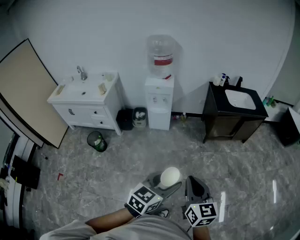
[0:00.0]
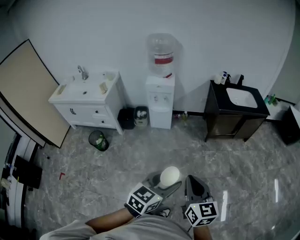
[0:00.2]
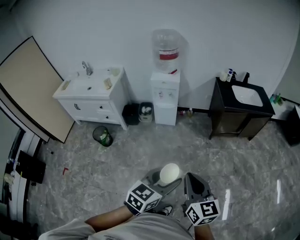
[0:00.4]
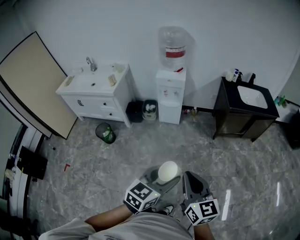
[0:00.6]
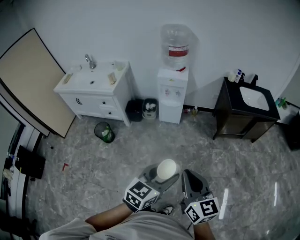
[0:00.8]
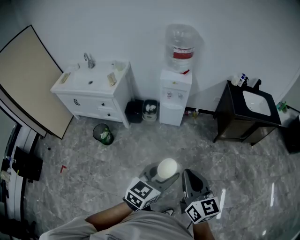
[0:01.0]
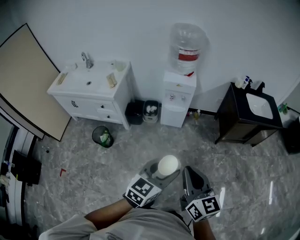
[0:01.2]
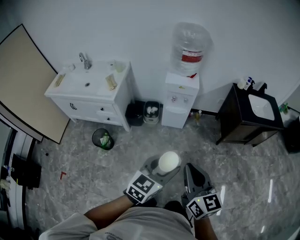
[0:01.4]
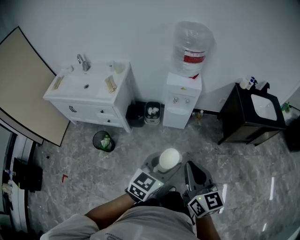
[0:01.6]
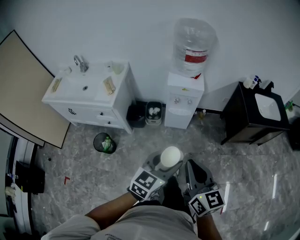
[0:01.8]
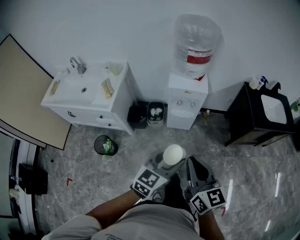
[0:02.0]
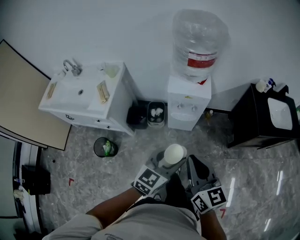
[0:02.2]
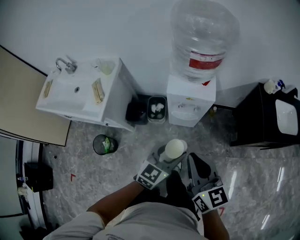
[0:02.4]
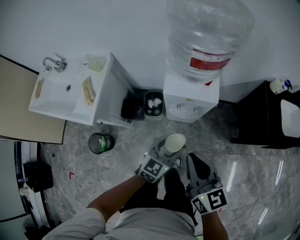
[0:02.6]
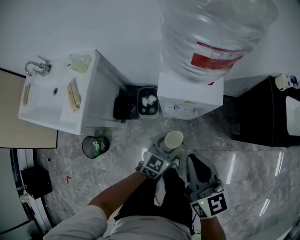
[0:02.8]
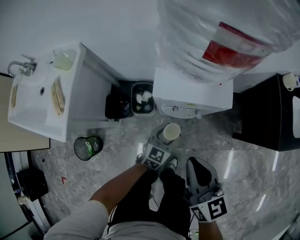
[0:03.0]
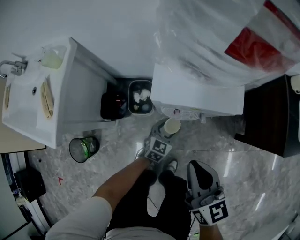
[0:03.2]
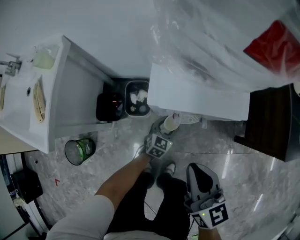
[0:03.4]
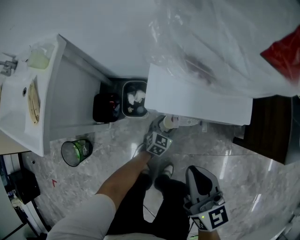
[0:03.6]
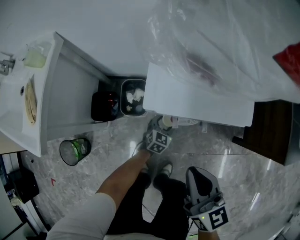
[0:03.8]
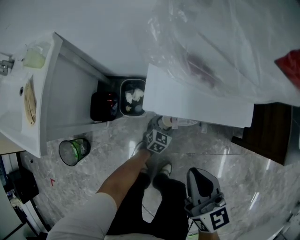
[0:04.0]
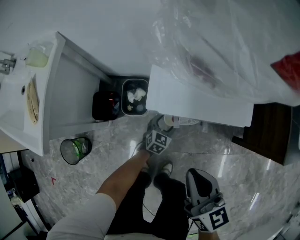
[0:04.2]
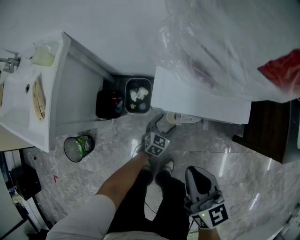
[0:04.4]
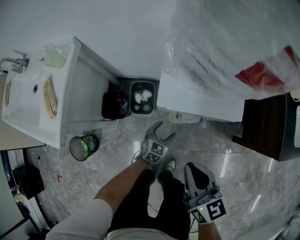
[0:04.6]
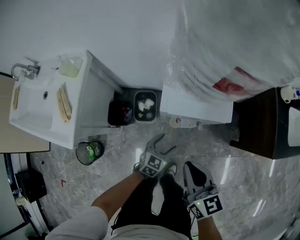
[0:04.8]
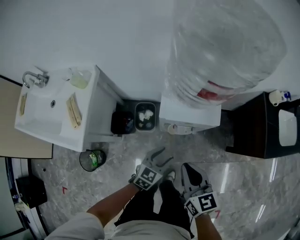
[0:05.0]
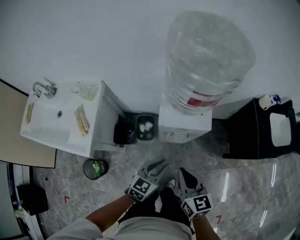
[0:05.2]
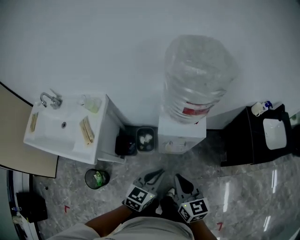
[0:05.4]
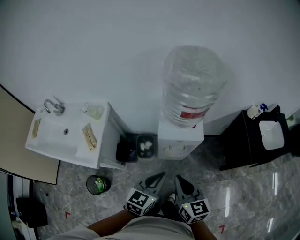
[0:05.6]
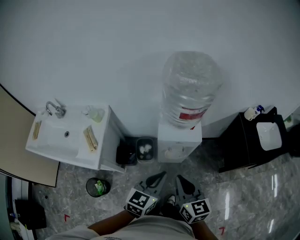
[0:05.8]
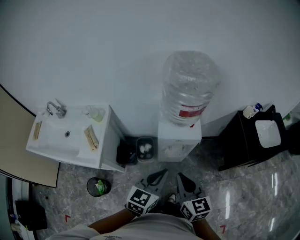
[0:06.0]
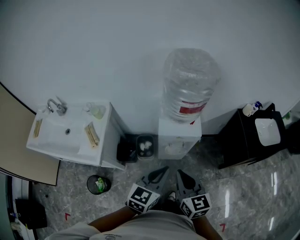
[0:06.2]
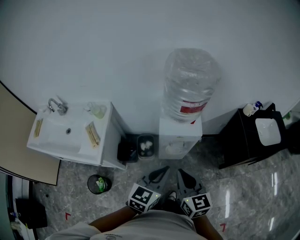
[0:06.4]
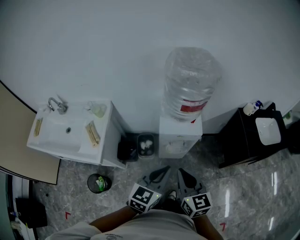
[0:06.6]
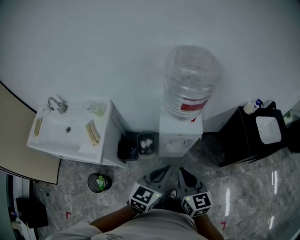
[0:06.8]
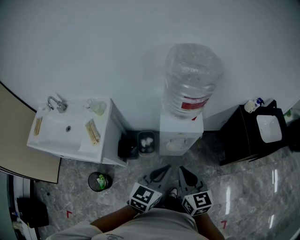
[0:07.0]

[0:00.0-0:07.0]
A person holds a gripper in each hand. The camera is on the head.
0:00.0 to 0:01.4: Both grippers travel together to the left and forward, roughly 30 cm.
0:01.4 to 0:02.8: The two grippers travel together, forward, roughly 50 cm. The left gripper heads downward, covering about 30 cm.
0:02.8 to 0:04.2: The right gripper moves downward, some 20 cm, while the left gripper travels downward and forward by some 35 cm.
0:04.2 to 0:05.6: The right gripper heads upward, covering about 25 cm. Meanwhile the left gripper is displaced upward by approximately 60 cm, and closes up.
0:05.6 to 0:07.0: The left gripper heads upward, covering roughly 5 cm.

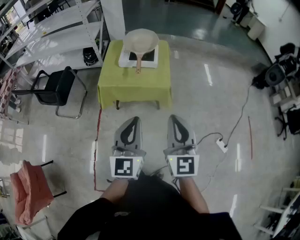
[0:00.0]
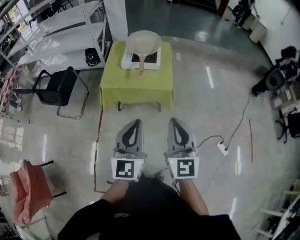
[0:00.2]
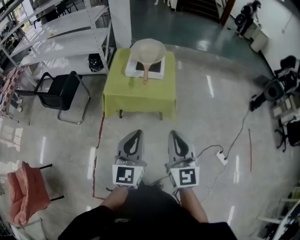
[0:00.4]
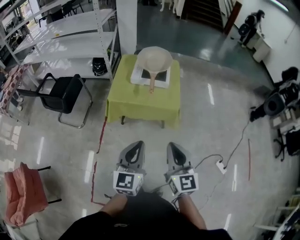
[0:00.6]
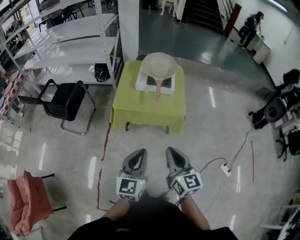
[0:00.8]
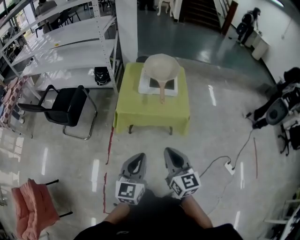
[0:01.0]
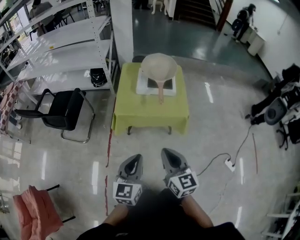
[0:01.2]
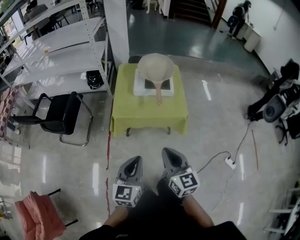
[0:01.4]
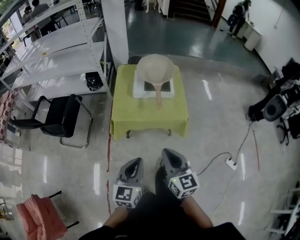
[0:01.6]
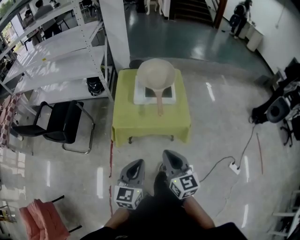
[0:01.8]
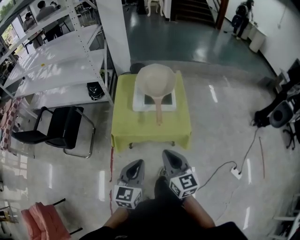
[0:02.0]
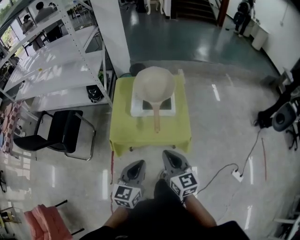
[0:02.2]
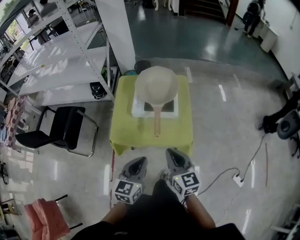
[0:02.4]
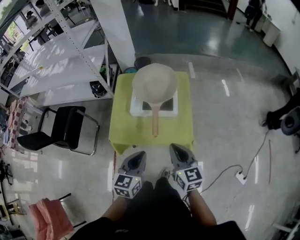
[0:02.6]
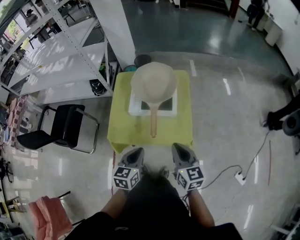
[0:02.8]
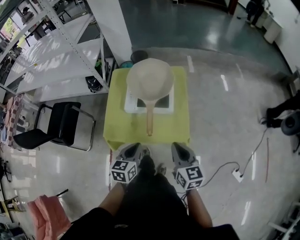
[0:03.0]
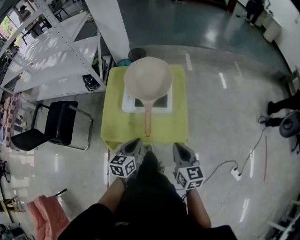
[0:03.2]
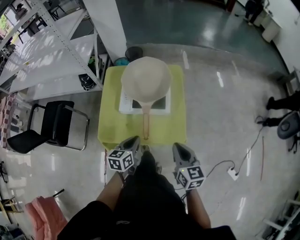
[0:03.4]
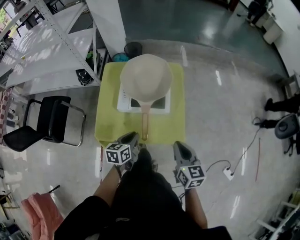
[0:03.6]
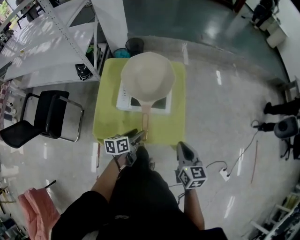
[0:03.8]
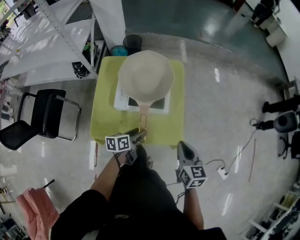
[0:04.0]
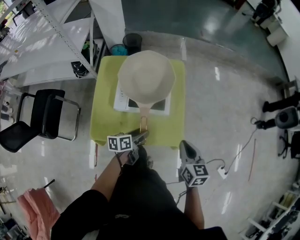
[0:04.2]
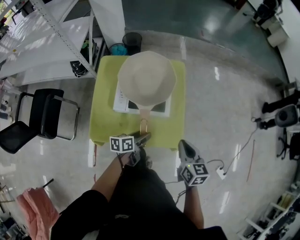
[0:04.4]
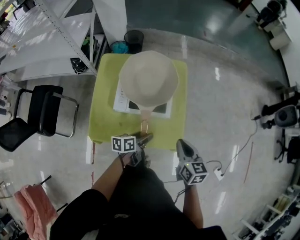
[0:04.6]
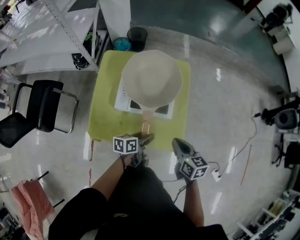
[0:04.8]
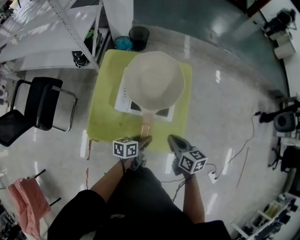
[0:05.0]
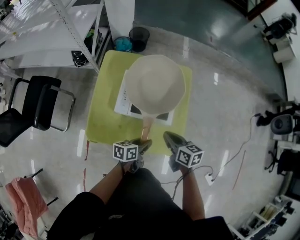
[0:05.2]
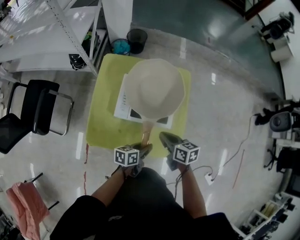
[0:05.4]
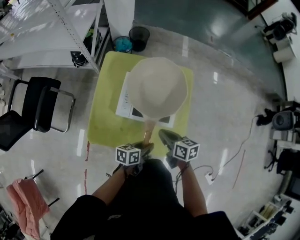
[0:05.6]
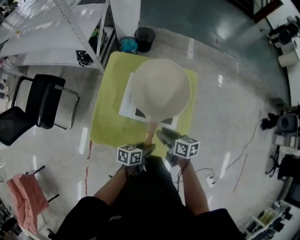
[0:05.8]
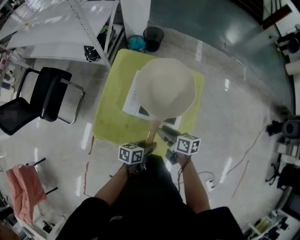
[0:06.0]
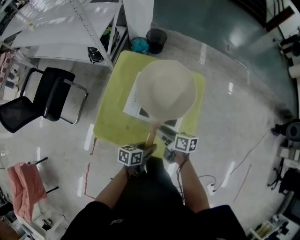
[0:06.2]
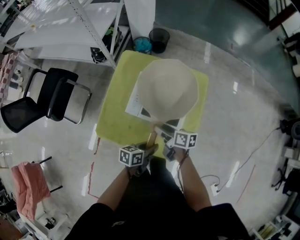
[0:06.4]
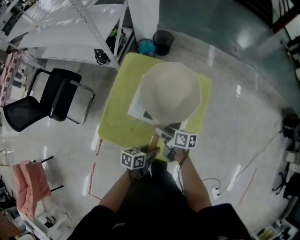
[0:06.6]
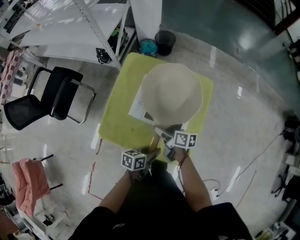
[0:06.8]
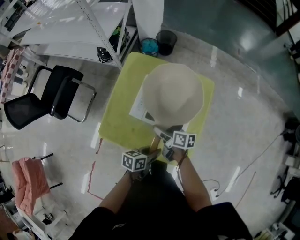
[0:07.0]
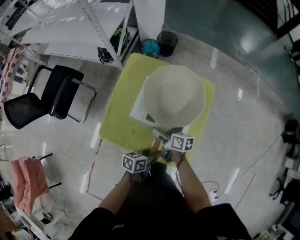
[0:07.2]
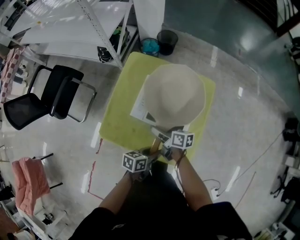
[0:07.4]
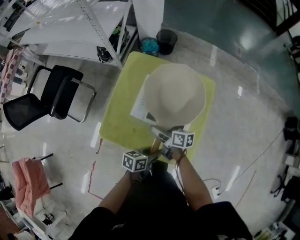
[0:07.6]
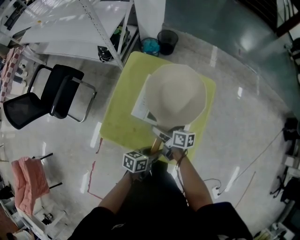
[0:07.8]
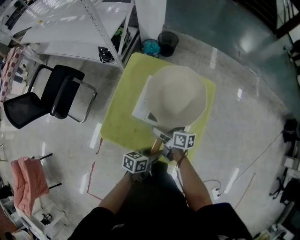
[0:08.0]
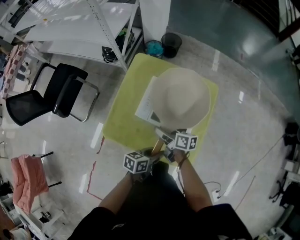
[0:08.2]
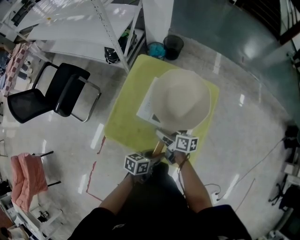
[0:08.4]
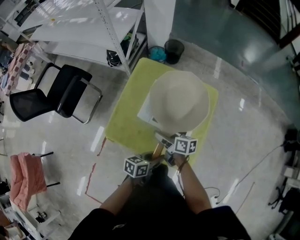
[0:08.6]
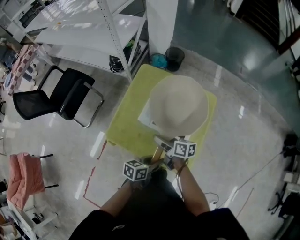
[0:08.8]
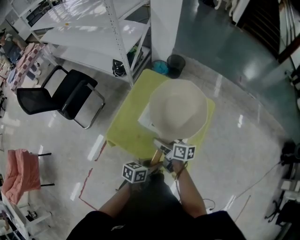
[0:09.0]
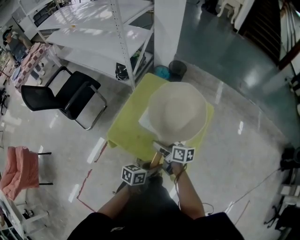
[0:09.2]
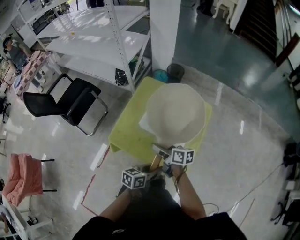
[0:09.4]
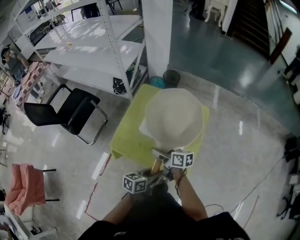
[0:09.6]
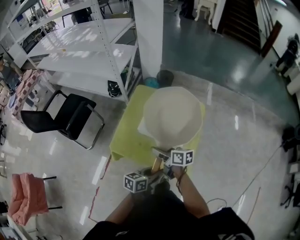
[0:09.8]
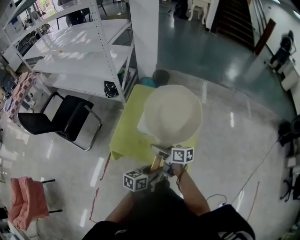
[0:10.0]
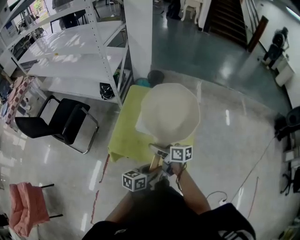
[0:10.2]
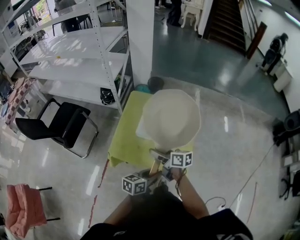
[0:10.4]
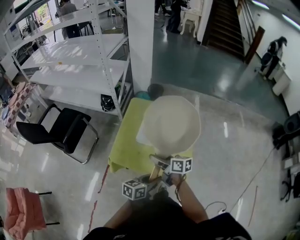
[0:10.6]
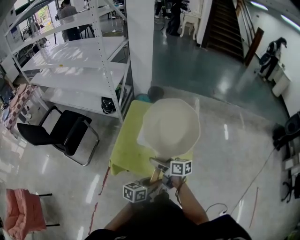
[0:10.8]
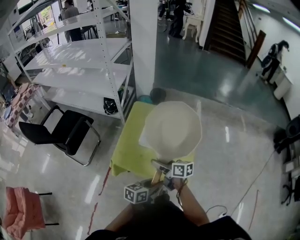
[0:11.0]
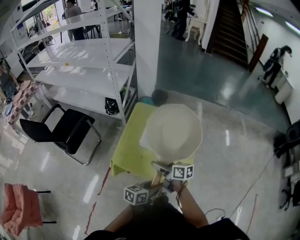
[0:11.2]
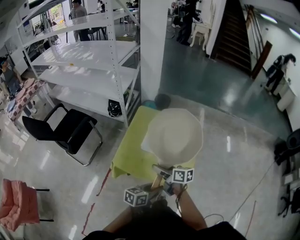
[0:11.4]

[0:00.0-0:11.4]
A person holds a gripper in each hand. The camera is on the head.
0:00.0 to 0:01.4: Both grippers travel together to the left, downward and forward, approximately 20 cm. The right gripper turns by approximately 20 degrees.
0:01.4 to 0:02.8: The left gripper moves forward, some 30 cm. The right gripper shifts about 30 cm forward and to the right.
0:02.8 to 0:04.2: The right gripper moves forward, downward and to the right, approximately 15 cm. Meanwhile the left gripper is displaced forward and downward by roughly 20 cm, swivels approximately 40 degrees, and opens up.
0:04.2 to 0:05.6: The right gripper heads to the left, forward and downward, covering approximately 20 cm, and swivels about 30 degrees. Meanwhile the left gripper closes.
0:05.6 to 0:07.2: The right gripper shifts approximately 5 cm to the left, and opens.
0:07.2 to 0:08.6: The grippers move only a little.
0:08.6 to 0:10.0: The grippers both shift upward and backward by approximately 15 cm.
0:10.0 to 0:11.4: There are only small adjustments of the grippers.

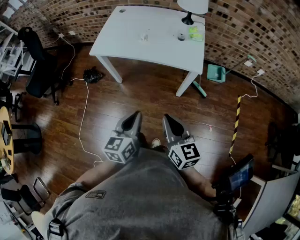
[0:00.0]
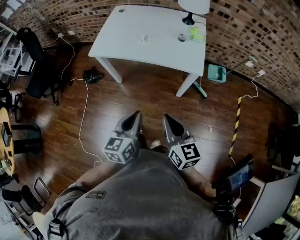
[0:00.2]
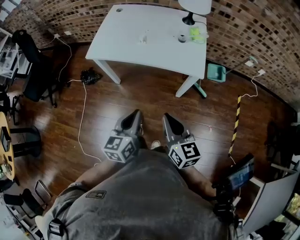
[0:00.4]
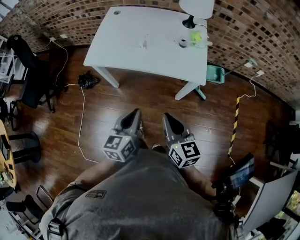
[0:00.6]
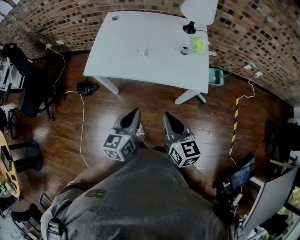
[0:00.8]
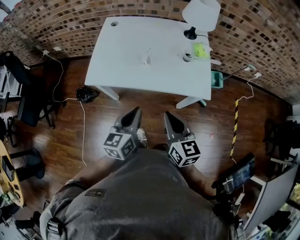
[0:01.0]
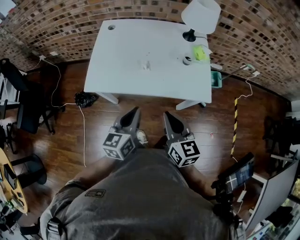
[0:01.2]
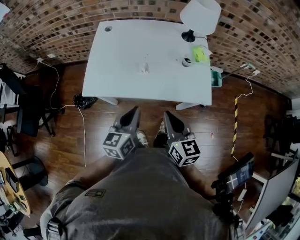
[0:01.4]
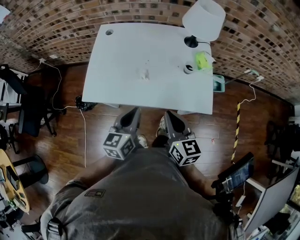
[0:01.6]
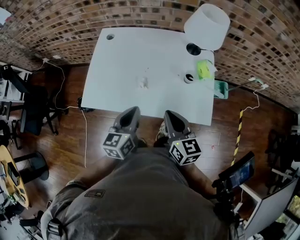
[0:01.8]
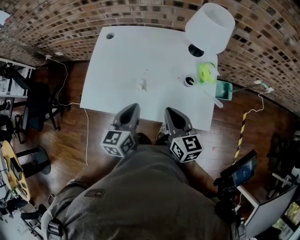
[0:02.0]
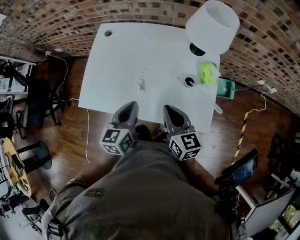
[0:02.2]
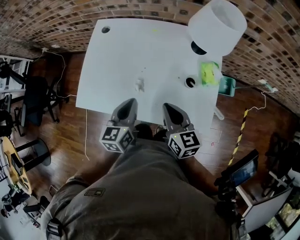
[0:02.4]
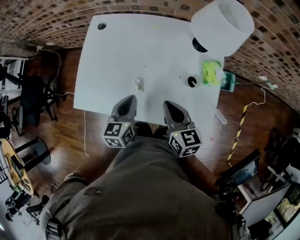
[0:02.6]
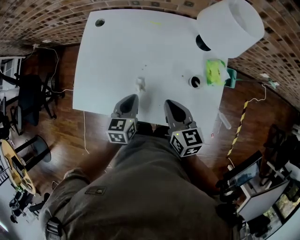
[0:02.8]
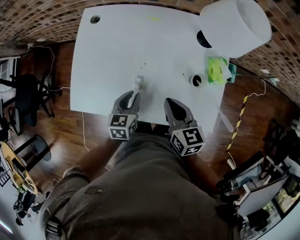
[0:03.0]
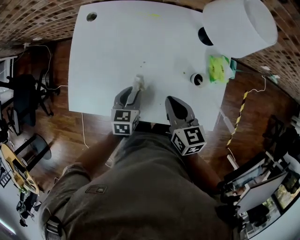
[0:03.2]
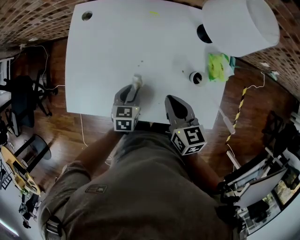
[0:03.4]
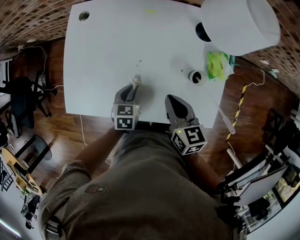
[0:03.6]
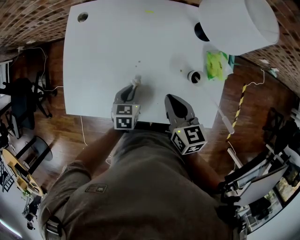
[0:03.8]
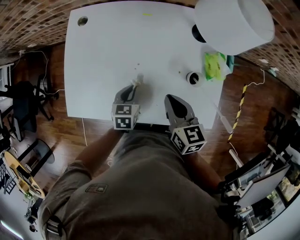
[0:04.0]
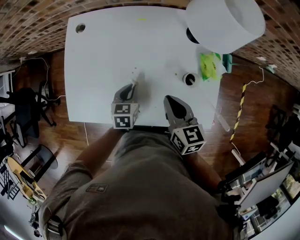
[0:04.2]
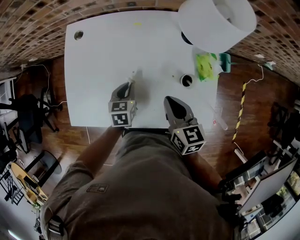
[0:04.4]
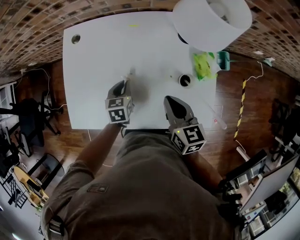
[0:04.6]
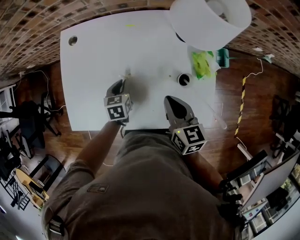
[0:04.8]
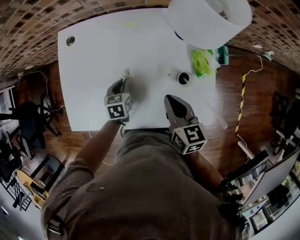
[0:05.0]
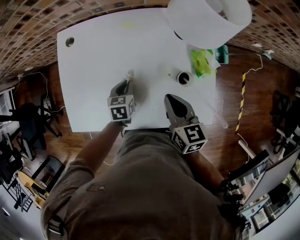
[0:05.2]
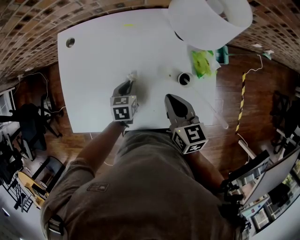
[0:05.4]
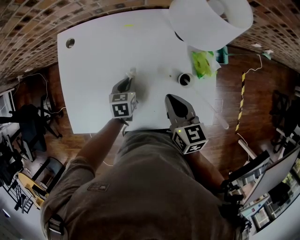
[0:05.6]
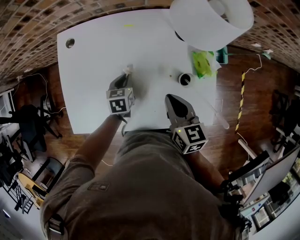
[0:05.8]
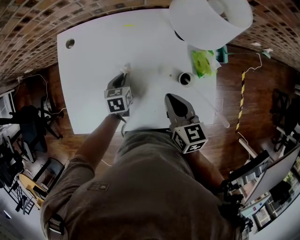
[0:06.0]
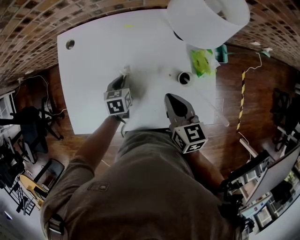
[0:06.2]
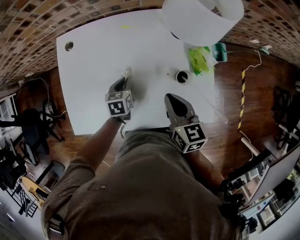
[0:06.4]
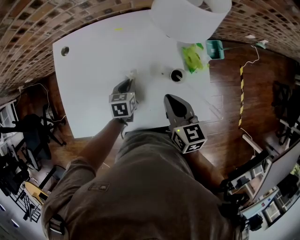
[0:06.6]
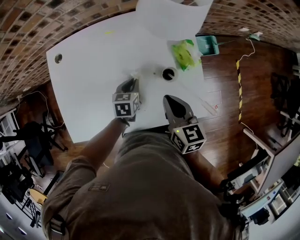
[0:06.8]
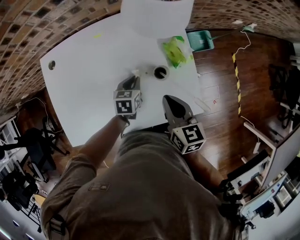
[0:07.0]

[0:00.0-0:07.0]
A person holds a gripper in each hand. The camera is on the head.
0:00.0 to 0:01.4: Both grippers move forward, about 30 cm.
0:01.4 to 0:02.8: The right gripper moves forward, about 20 cm, while the left gripper travels forward and downward by roughly 25 cm, and changes its angle by approximately 20 degrees.
0:02.8 to 0:04.2: The left gripper travels downward and forward by about 10 cm, and opens, then closes once more.
0:04.2 to 0:05.6: The left gripper moves forward, roughly 5 cm.
0:05.6 to 0:07.0: The right gripper goes roughly 5 cm to the right. The left gripper is displaced to the right by some 15 cm.
